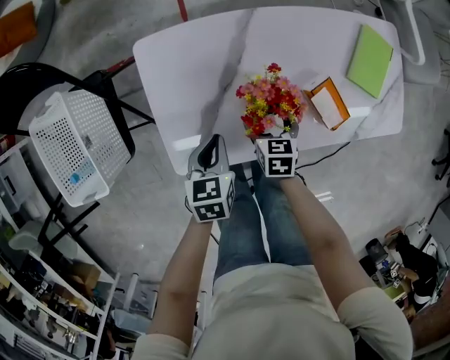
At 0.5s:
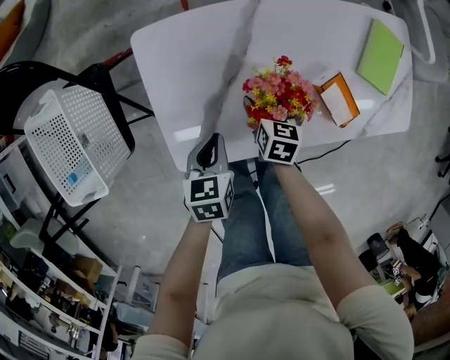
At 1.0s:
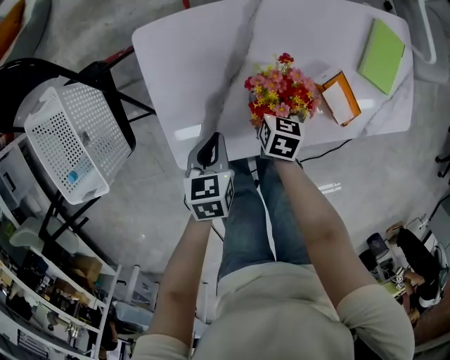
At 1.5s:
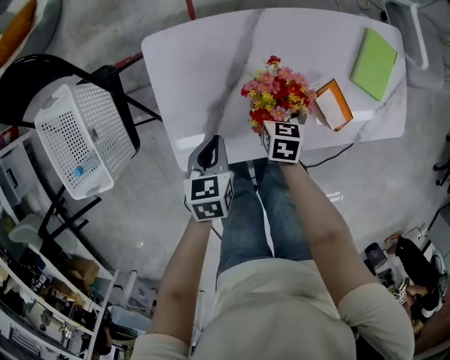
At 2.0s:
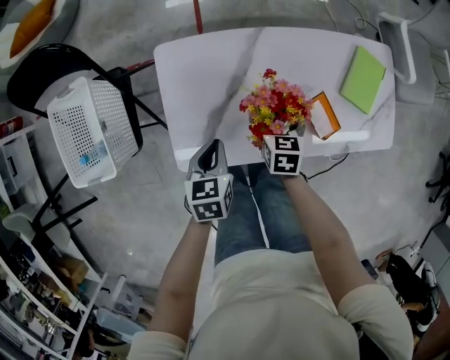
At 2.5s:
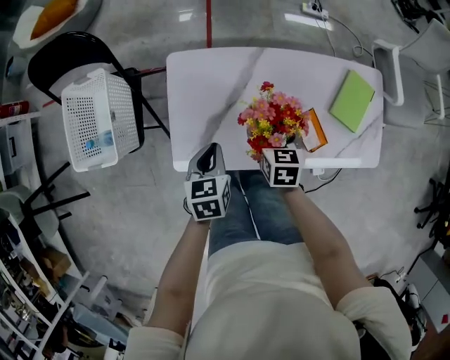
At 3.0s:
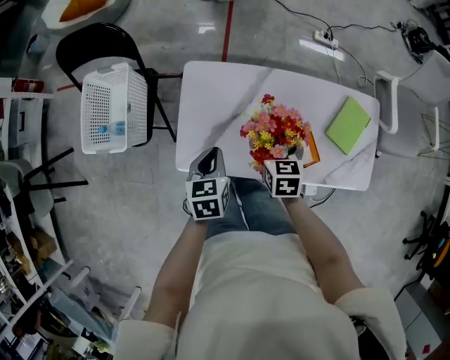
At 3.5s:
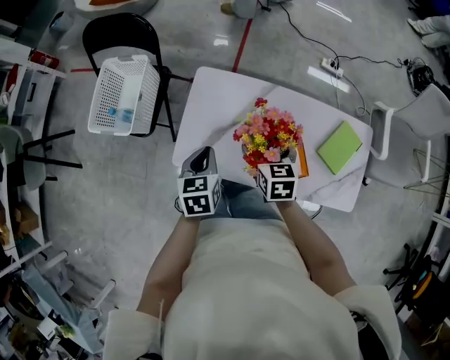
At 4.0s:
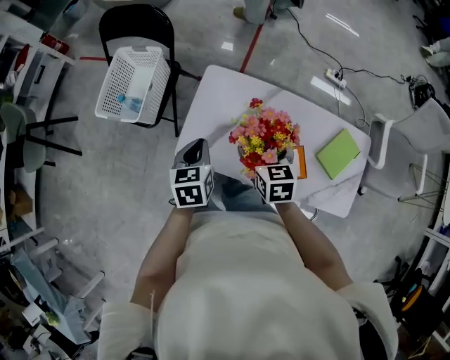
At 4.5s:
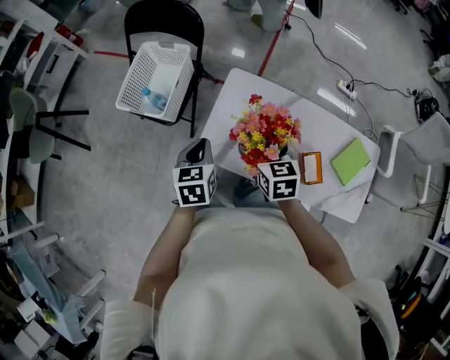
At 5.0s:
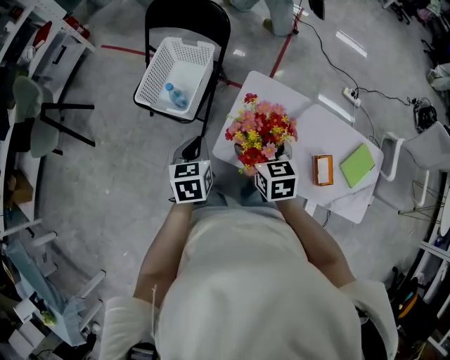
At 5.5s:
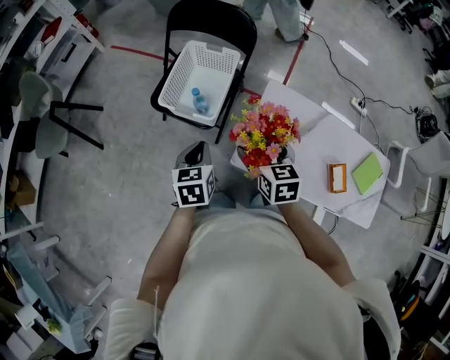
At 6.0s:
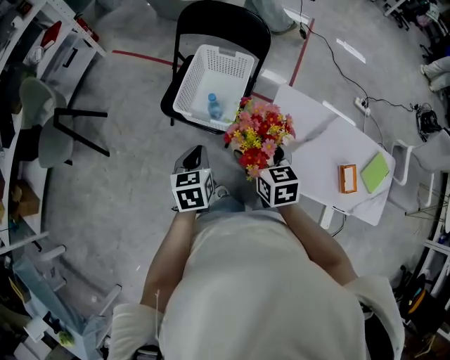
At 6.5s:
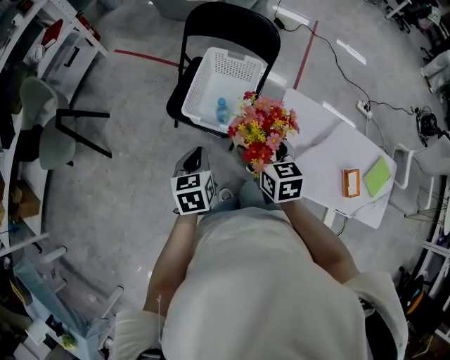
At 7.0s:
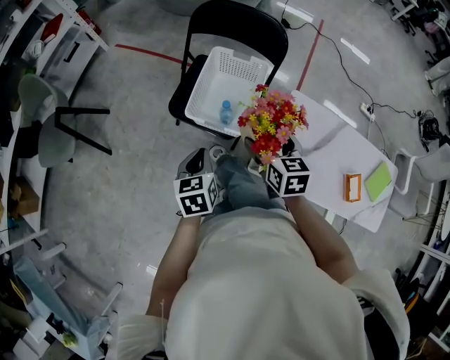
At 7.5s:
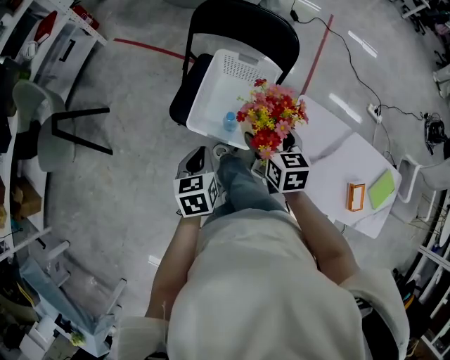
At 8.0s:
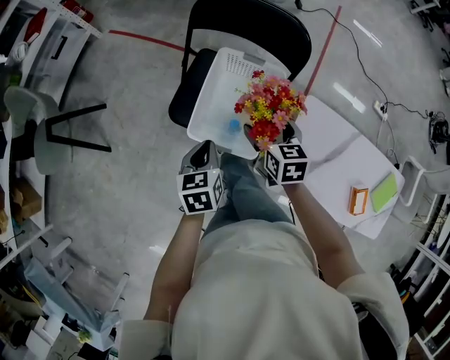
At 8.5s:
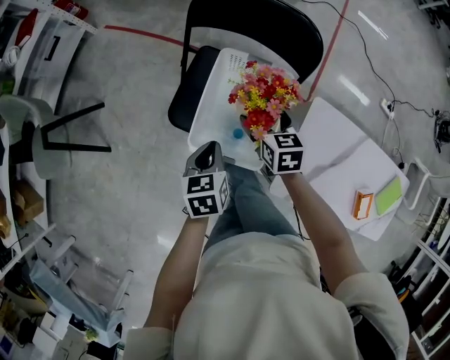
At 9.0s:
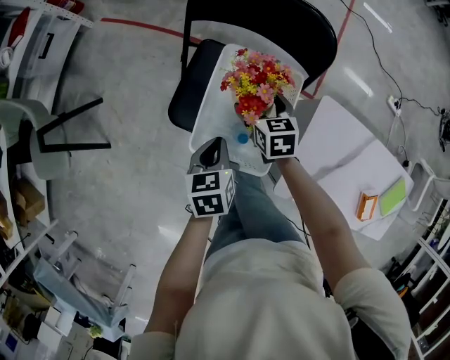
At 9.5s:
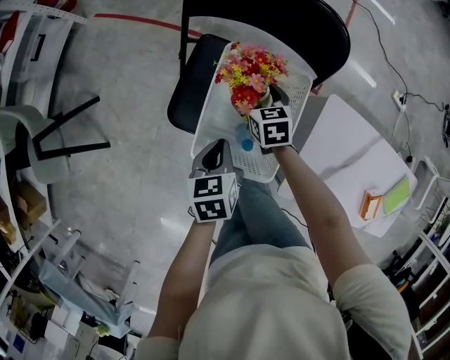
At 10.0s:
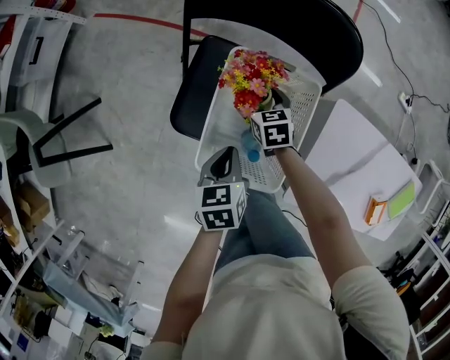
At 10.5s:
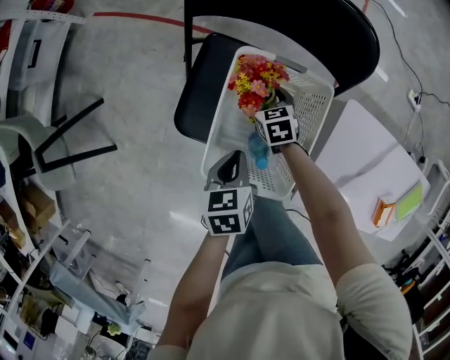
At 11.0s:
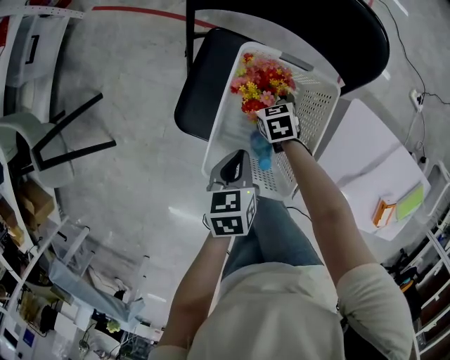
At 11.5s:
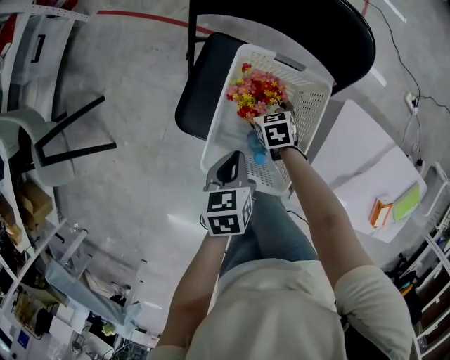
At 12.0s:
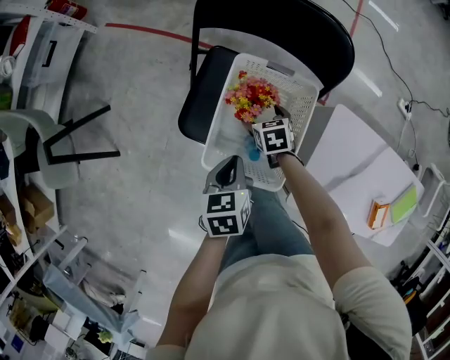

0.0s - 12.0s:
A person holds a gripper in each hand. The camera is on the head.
0.0s - 2.0s: Both grippers move upward, approximately 5 cm.
2.0s - 4.0s: The two grippers go about 20 cm upward. The right gripper turns by some 30 degrees. Meanwhile the left gripper changes its angle by some 30 degrees.
4.0s - 6.0s: Both grippers move to the left, roughly 40 cm.
6.0s - 8.0s: The two grippers go roughly 20 cm forward.
8.0s - 10.0s: The left gripper heads downward and forward, covering approximately 15 cm, while the right gripper travels downward and forward by some 25 cm.
10.0s - 12.0s: The right gripper travels downward and back again, about 10 cm each way.

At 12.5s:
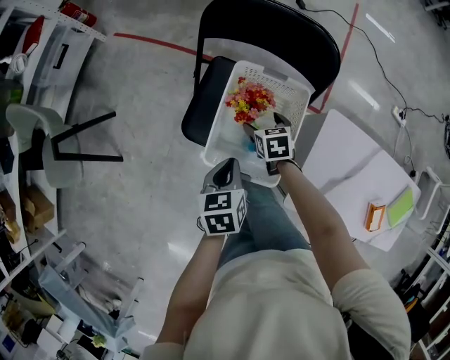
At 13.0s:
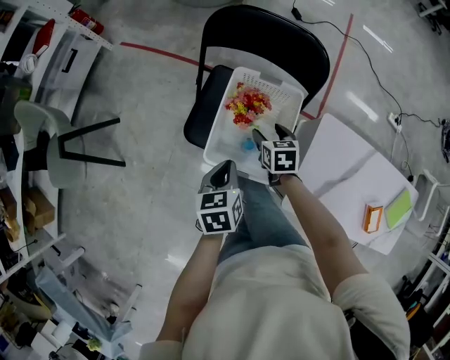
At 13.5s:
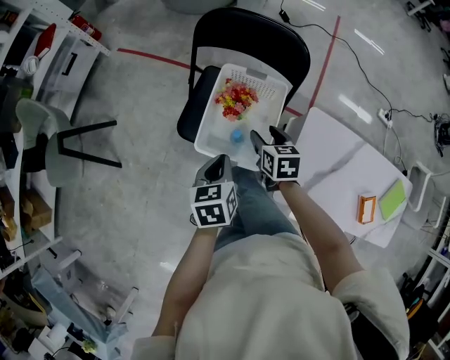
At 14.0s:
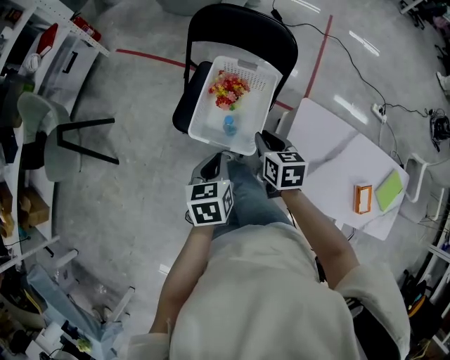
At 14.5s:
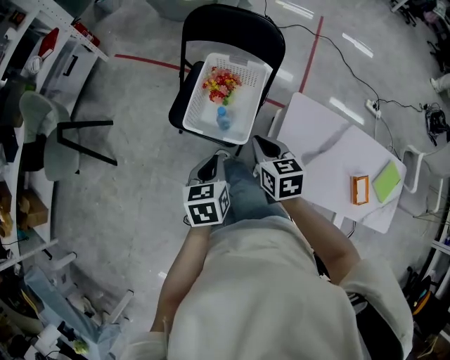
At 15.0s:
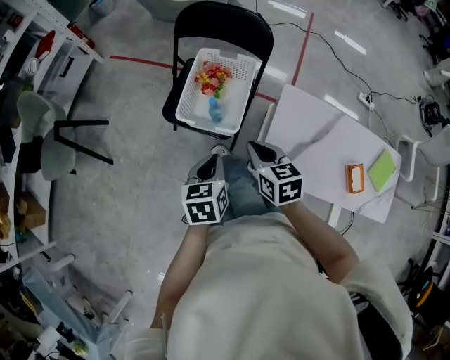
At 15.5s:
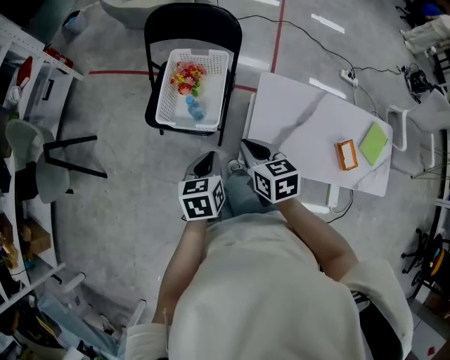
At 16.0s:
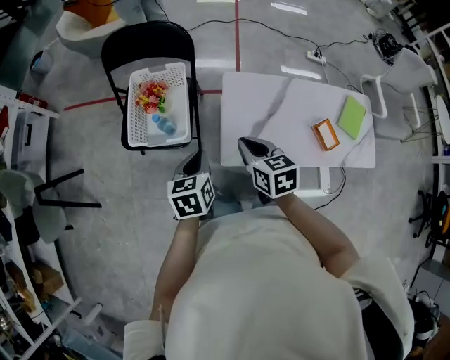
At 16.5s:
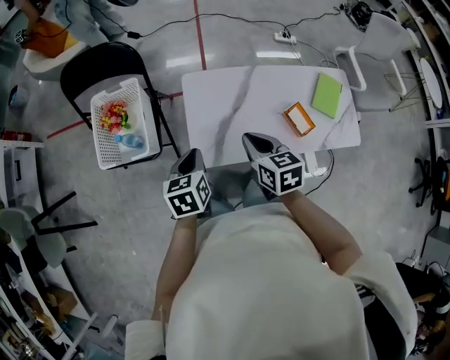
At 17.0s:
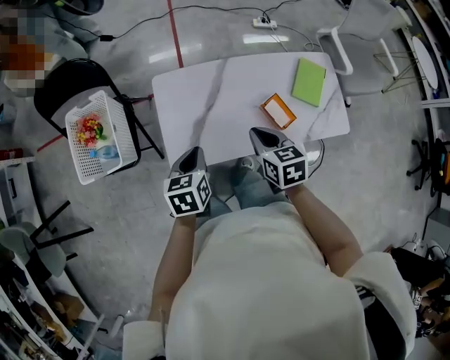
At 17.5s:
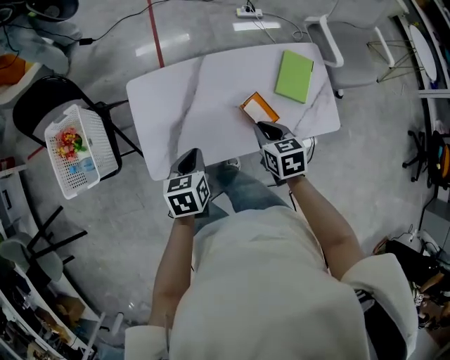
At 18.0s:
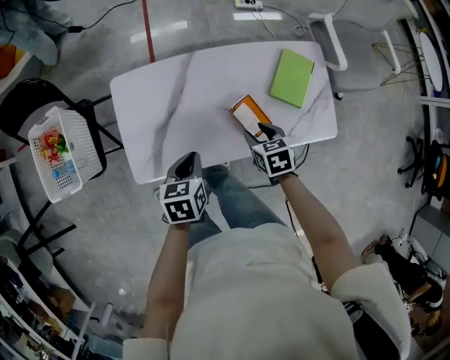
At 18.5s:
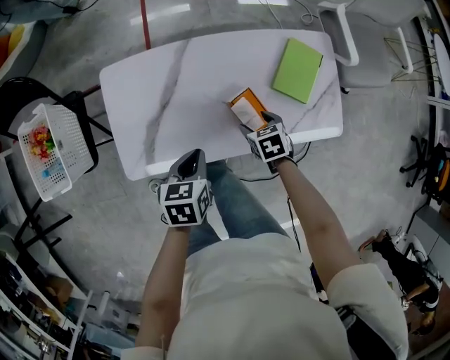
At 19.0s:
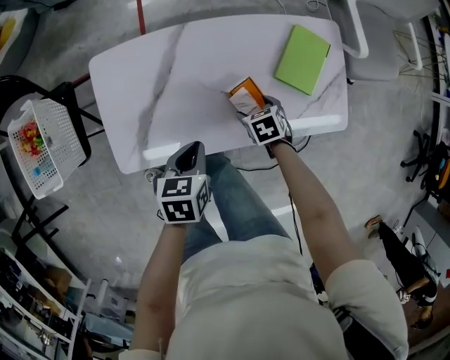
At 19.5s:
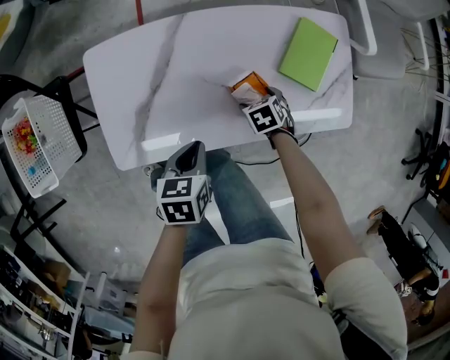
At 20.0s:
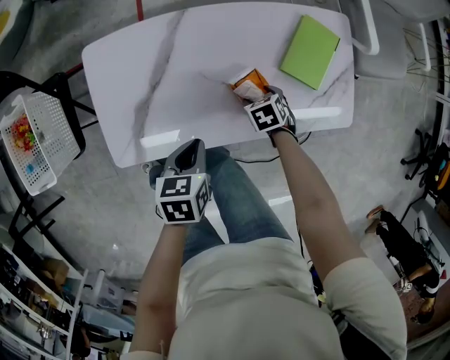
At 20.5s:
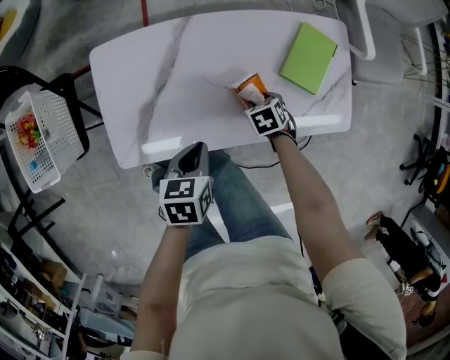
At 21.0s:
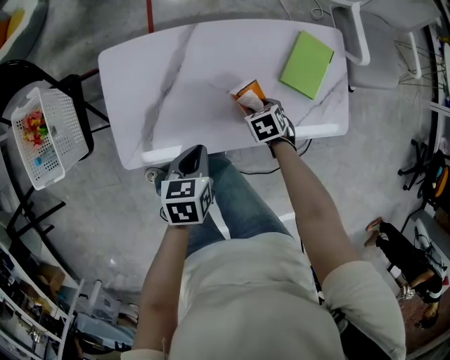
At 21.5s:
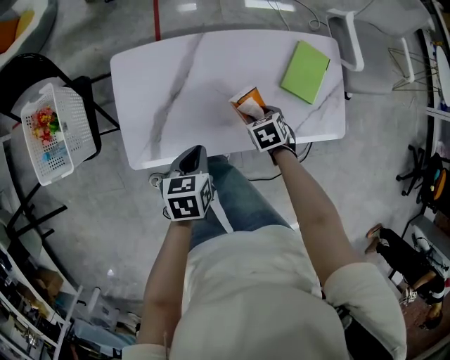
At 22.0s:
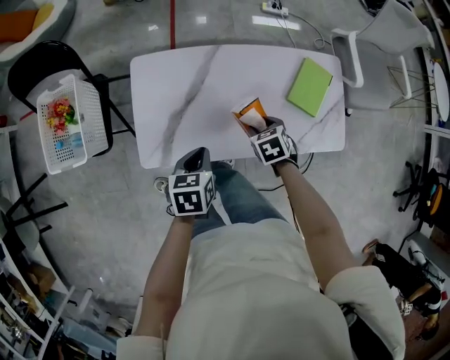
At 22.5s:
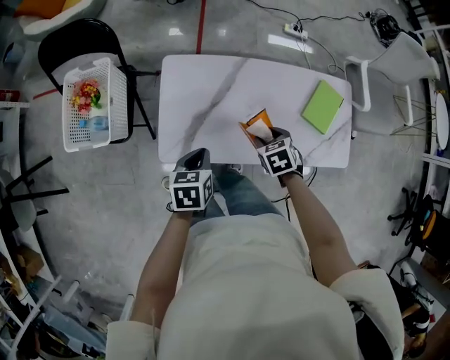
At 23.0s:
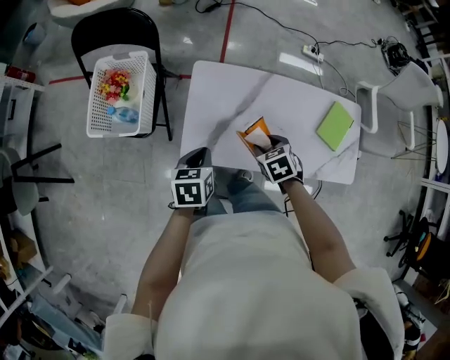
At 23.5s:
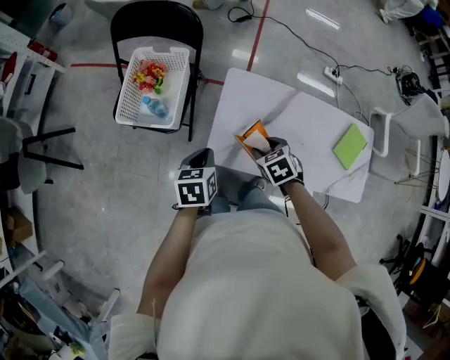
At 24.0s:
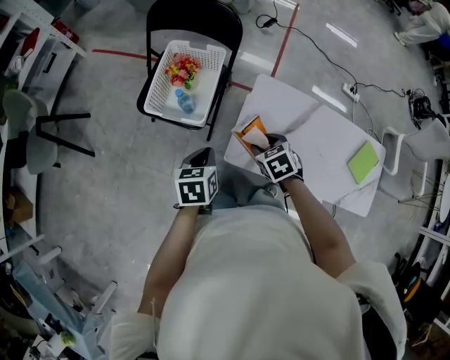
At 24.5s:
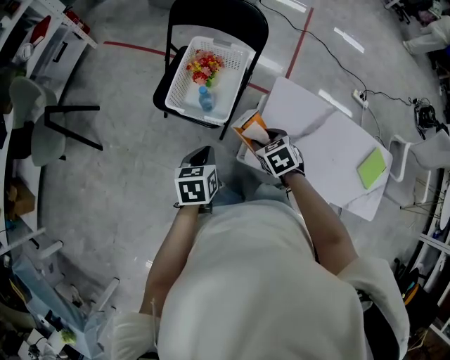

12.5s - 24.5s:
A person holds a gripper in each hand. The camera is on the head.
12.5s - 14.5s: The left gripper moves backward and upward, roughly 20 cm, while the right gripper goes roughly 30 cm backward and upward, turns by roughly 20 degrees, and closes.
14.5s - 16.5s: The left gripper heads to the right, covering roughly 25 cm, and swivels roughly 20 degrees, while the right gripper moves to the right and backward, roughly 35 cm, and turns by some 20 degrees.
16.5s - 18.5s: The two grippers go roughly 40 cm to the right and downward. The right gripper points its fingers roughly 30 degrees further downward, and opens its fingers.
18.5s - 20.5s: The right gripper moves downward, about 5 cm.
20.5s - 22.5s: The right gripper travels upward by approximately 20 cm; the left gripper ends up some 15 cm from where it was.
22.5s - 24.5s: The left gripper changes place by some 40 cm, and rotates approximately 20 degrees, while the right gripper moves approximately 40 cm, and changes its angle by roughly 30 degrees.

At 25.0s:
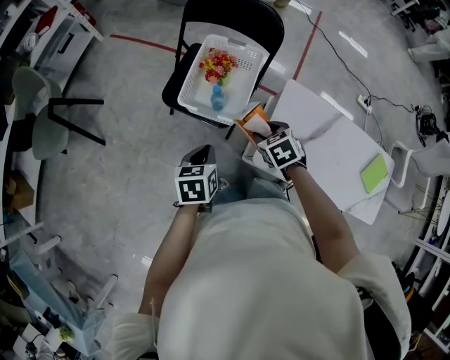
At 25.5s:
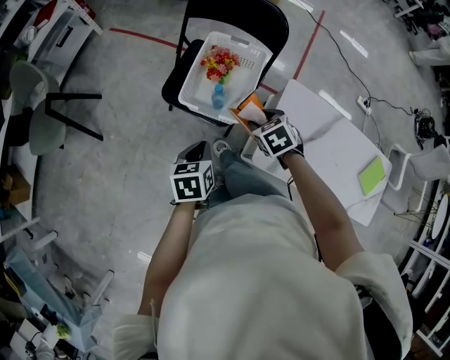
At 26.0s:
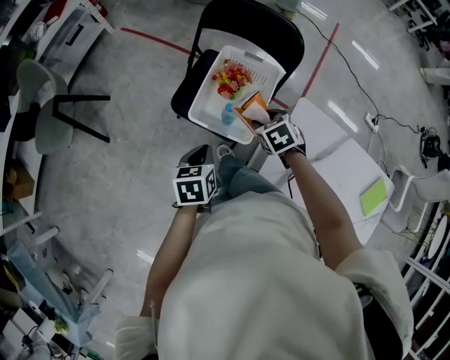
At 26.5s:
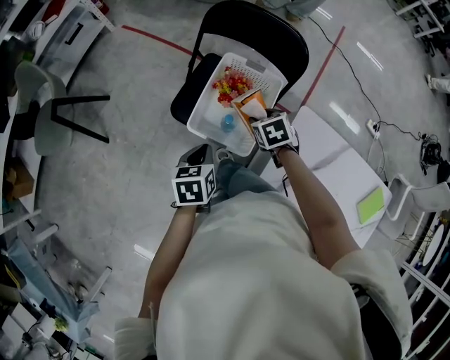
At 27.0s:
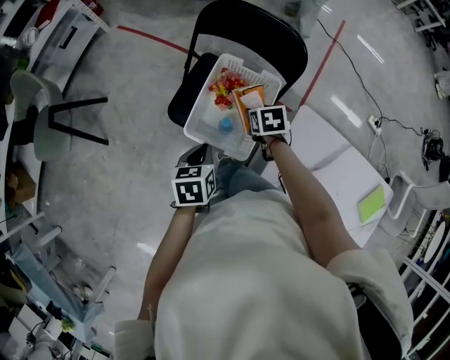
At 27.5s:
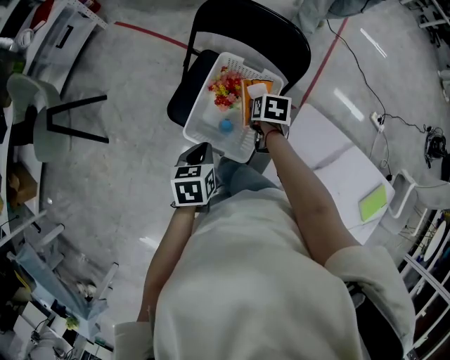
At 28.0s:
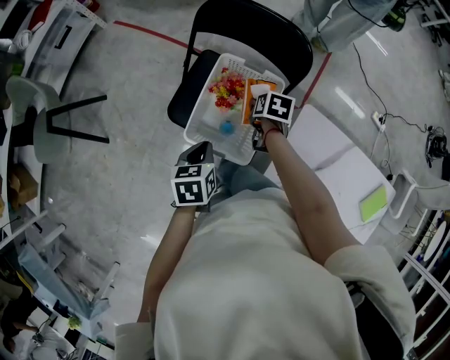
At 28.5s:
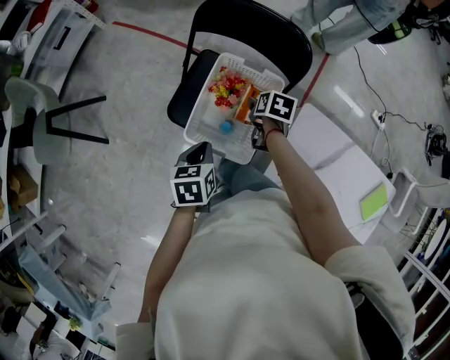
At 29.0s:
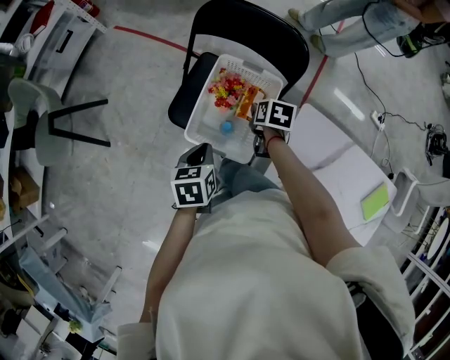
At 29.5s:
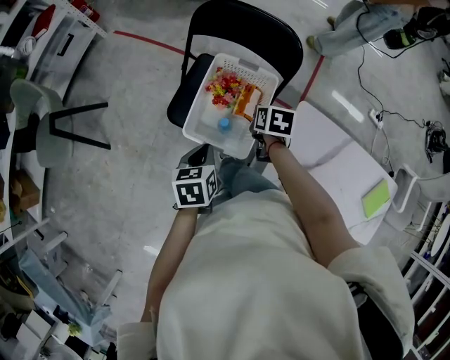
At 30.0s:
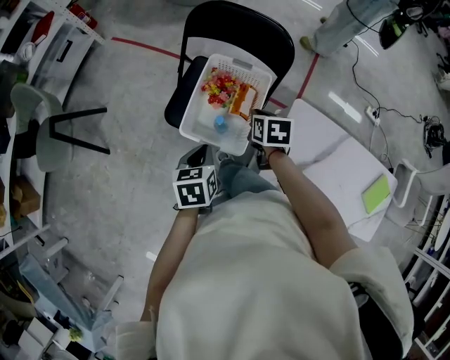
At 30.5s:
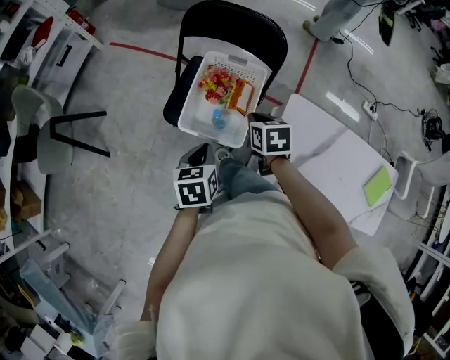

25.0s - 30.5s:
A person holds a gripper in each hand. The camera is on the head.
25.0s - 27.0s: Both grippers travel together forward, some 20 cm.
27.0s - 28.5s: The right gripper moves approximately 5 cm, and changes its angle by roughly 30 degrees.
28.5s - 30.5s: The left gripper goes roughly 5 cm backward; the right gripper moves backward and upward, about 15 cm, rotates approximately 20 degrees, and closes up.
